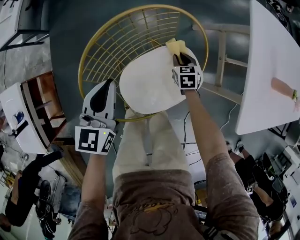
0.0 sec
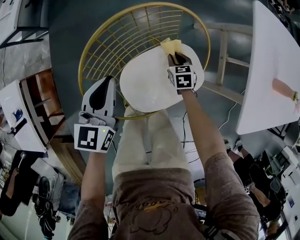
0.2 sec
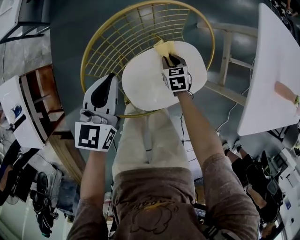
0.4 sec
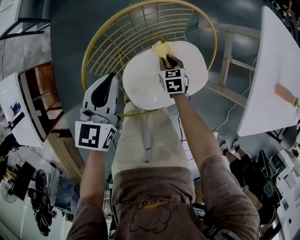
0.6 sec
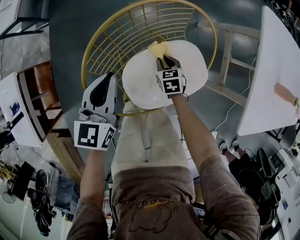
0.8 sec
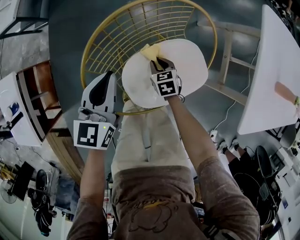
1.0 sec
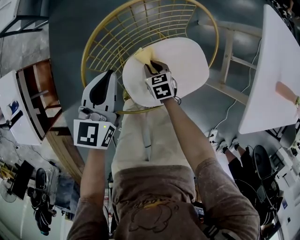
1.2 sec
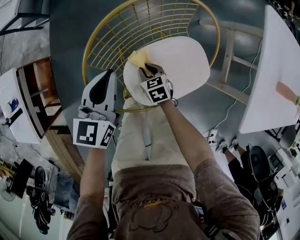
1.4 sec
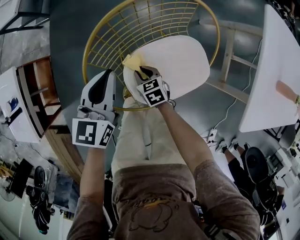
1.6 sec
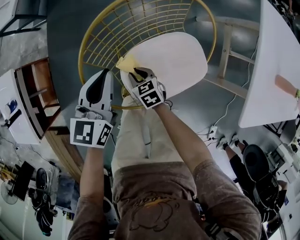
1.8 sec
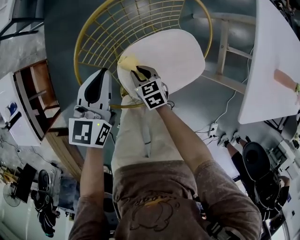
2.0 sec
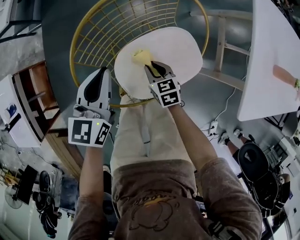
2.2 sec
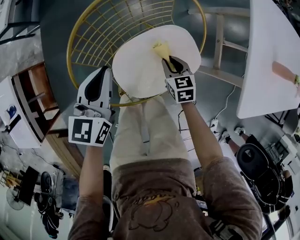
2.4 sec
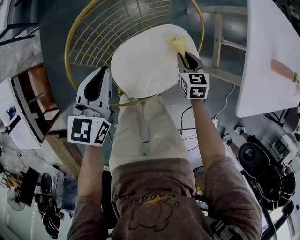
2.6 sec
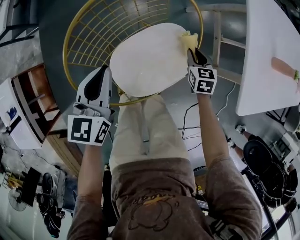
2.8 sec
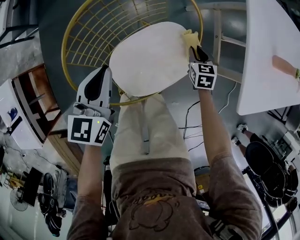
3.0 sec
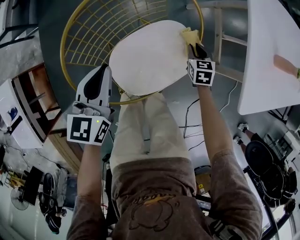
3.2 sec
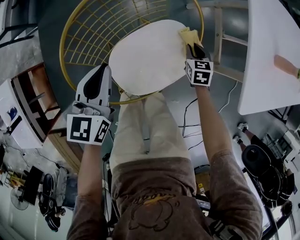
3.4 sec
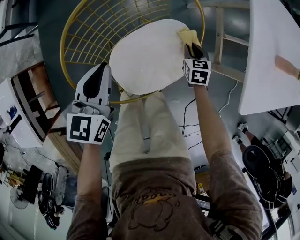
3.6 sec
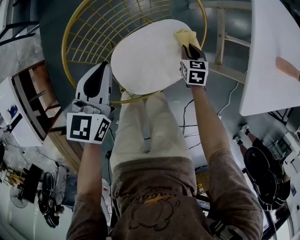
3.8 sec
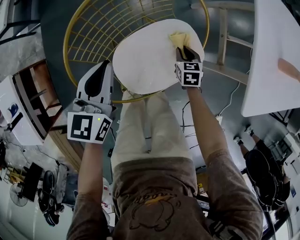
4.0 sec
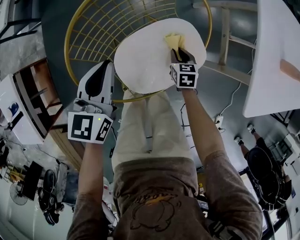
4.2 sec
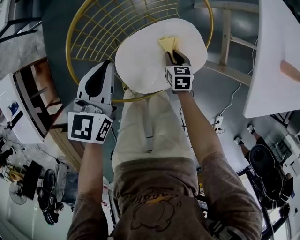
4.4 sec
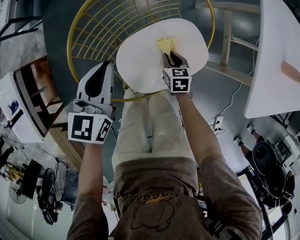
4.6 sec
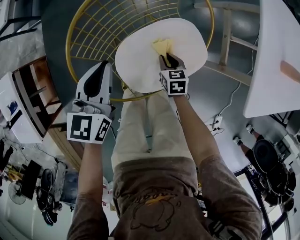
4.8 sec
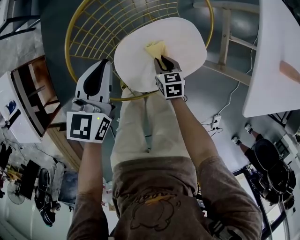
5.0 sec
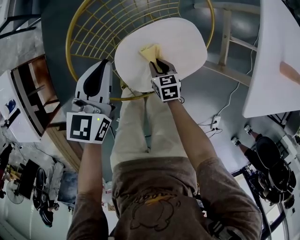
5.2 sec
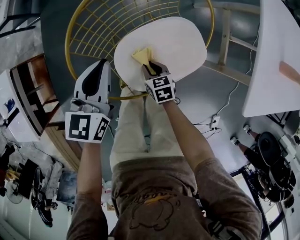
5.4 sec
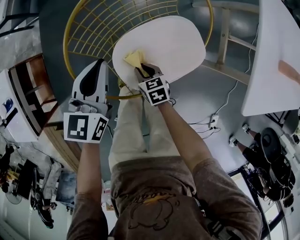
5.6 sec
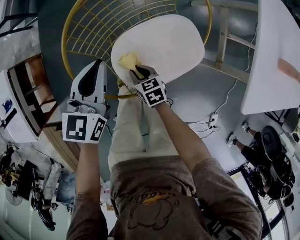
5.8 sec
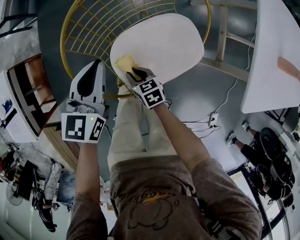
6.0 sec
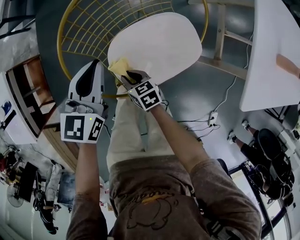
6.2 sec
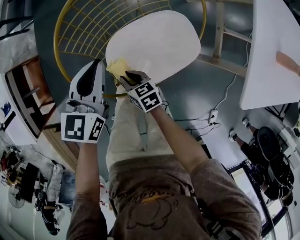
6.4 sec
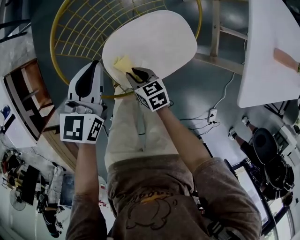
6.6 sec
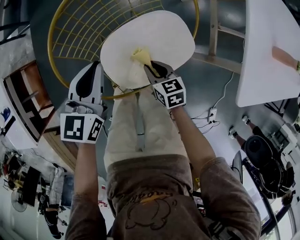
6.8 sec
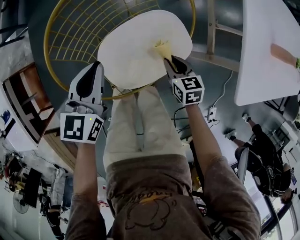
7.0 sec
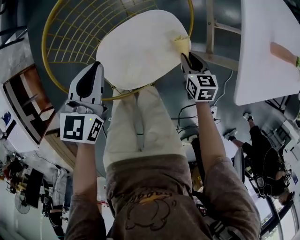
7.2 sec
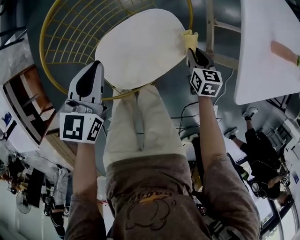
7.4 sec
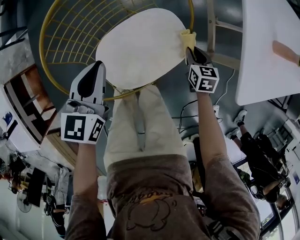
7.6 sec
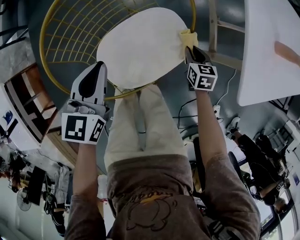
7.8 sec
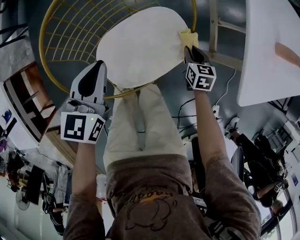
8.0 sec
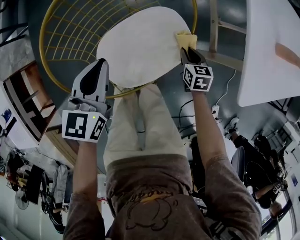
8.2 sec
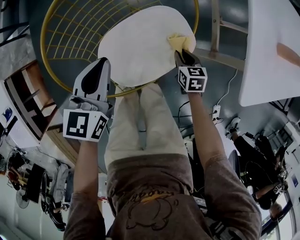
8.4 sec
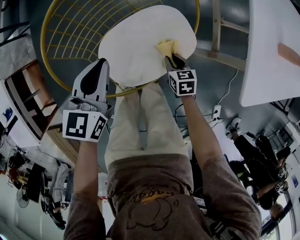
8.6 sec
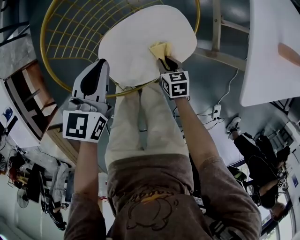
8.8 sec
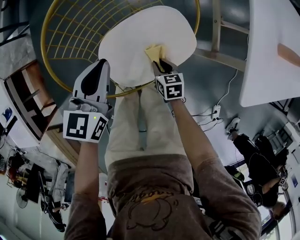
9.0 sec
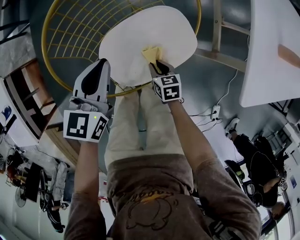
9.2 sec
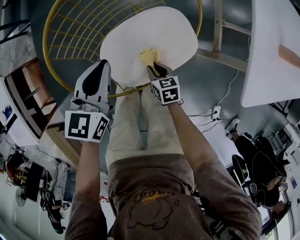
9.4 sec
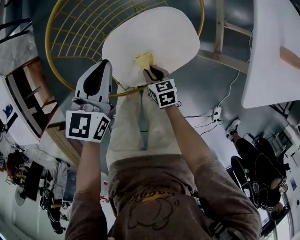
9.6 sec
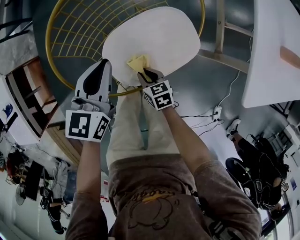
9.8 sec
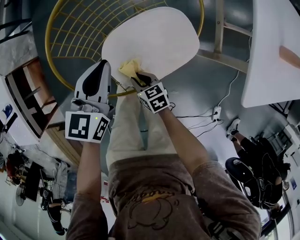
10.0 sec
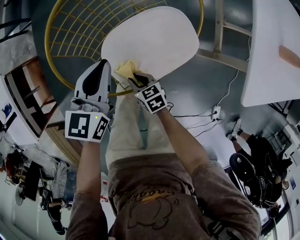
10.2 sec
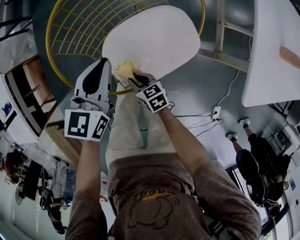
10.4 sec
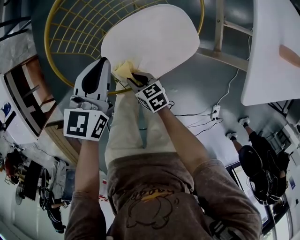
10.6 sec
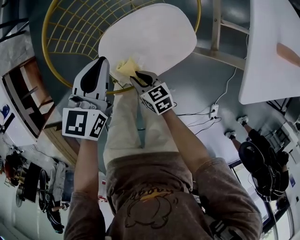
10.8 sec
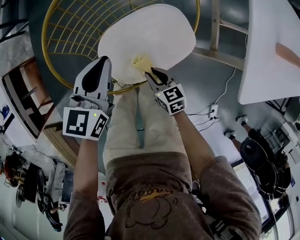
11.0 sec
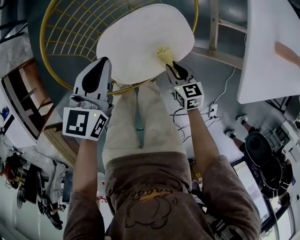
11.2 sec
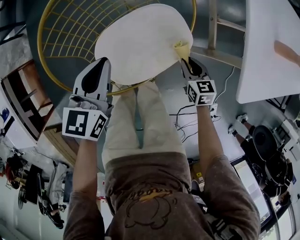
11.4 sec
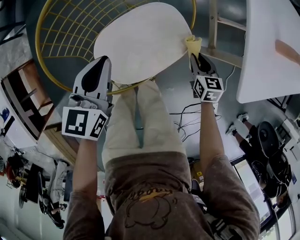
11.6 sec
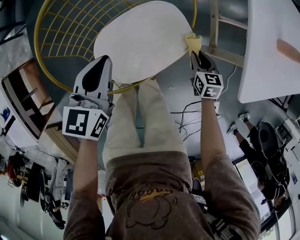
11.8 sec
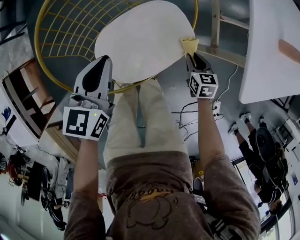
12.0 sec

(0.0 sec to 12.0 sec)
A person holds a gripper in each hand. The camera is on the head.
0.0 sec - 1.6 sec: The right gripper travels to the left and backward by approximately 25 cm, and rotates approximately 30 degrees.
1.6 sec - 3.0 sec: The left gripper changes place by approximately 5 cm, while the right gripper changes place by about 30 cm, and turns by about 30 degrees.
3.0 sec - 4.4 sec: The right gripper heads to the left, backward and downward, covering approximately 15 cm.
4.4 sec - 6.0 sec: The right gripper goes roughly 20 cm to the left and backward, and changes its angle by about 30 degrees.
6.0 sec - 7.6 sec: The right gripper changes place by some 35 cm, and rotates about 30 degrees, while the left gripper ends up roughly 5 cm from where it was.
7.6 sec - 9.0 sec: The right gripper goes roughly 20 cm to the left, backward and downward.
9.0 sec - 10.4 sec: The right gripper is displaced to the left by some 15 cm, and rotates about 20 degrees.
10.4 sec - 12.0 sec: The right gripper ends up about 30 cm from where it was, and changes its angle by roughly 30 degrees.

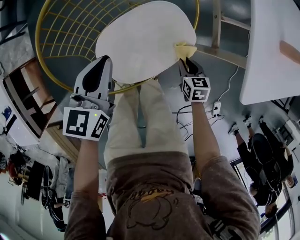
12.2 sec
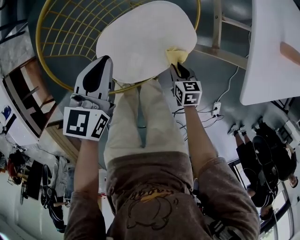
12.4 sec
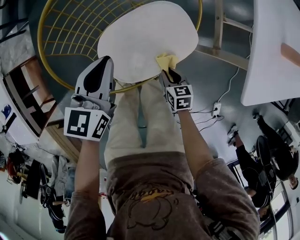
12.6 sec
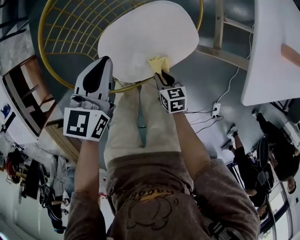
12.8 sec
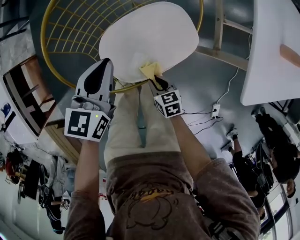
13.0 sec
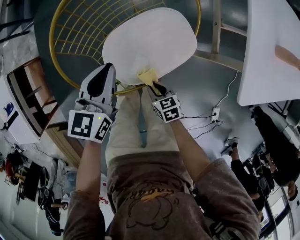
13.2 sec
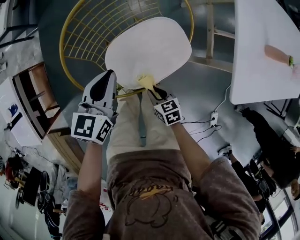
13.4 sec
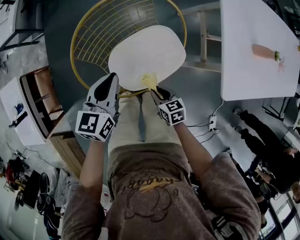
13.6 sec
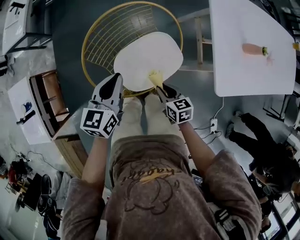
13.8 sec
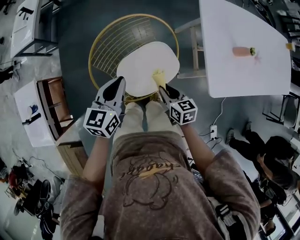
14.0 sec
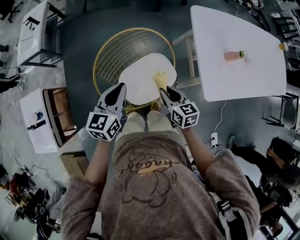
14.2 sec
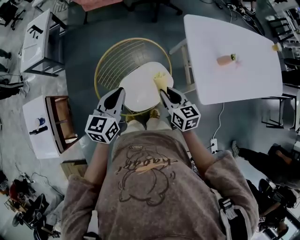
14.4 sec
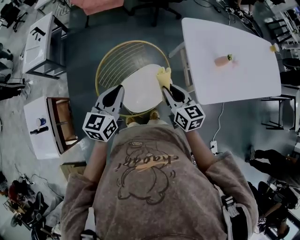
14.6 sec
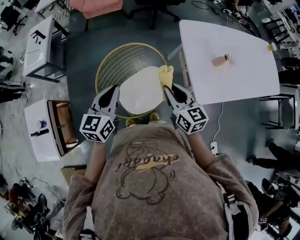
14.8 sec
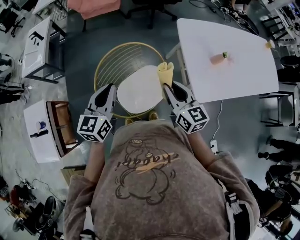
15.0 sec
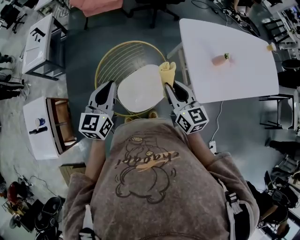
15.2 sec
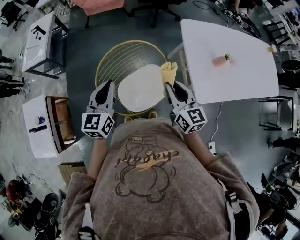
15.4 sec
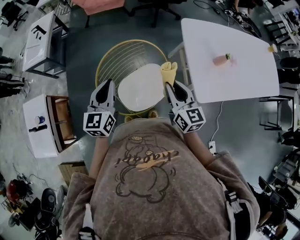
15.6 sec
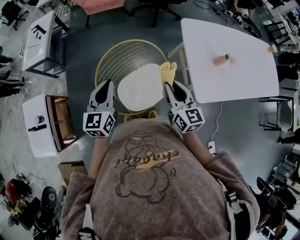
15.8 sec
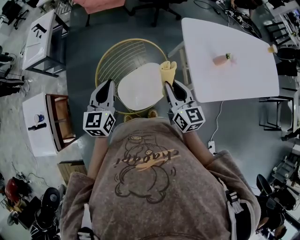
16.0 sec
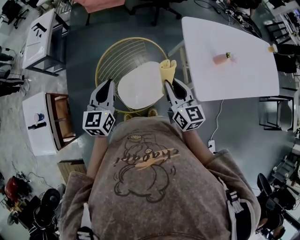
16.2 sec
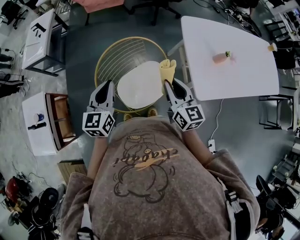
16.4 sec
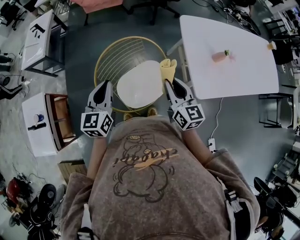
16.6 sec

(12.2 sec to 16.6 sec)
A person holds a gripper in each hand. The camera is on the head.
12.2 sec - 13.6 sec: The left gripper moves upward, approximately 10 cm. Meanwhile the right gripper is displaced to the left and upward by some 20 cm.
13.6 sec - 15.2 sec: The left gripper moves upward, some 25 cm. The right gripper is displaced upward by roughly 40 cm, and points its fingers roughly 40 degrees further upward.
15.2 sec - 16.6 sec: The grippers move only a little.

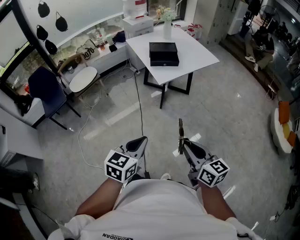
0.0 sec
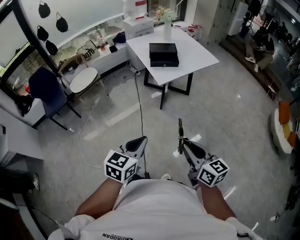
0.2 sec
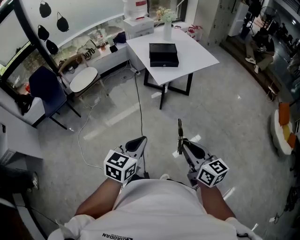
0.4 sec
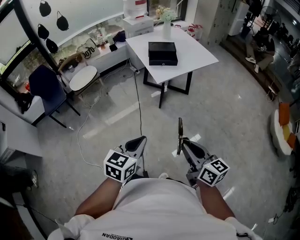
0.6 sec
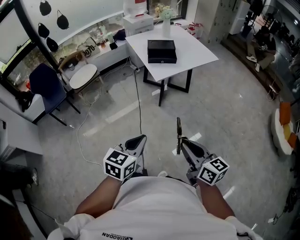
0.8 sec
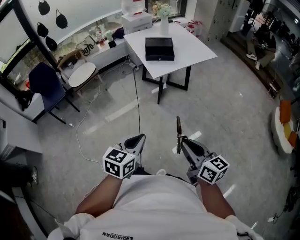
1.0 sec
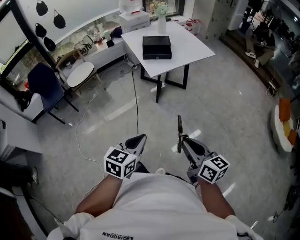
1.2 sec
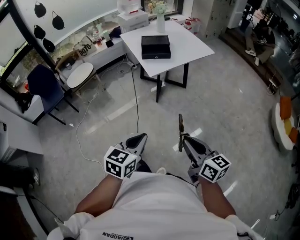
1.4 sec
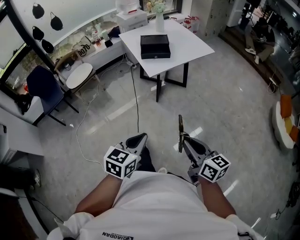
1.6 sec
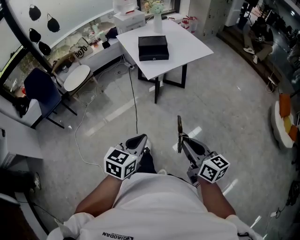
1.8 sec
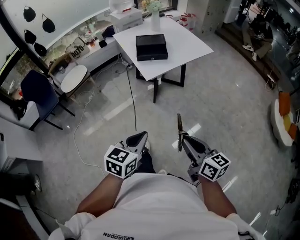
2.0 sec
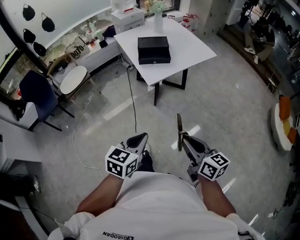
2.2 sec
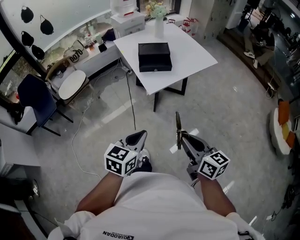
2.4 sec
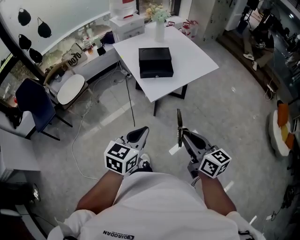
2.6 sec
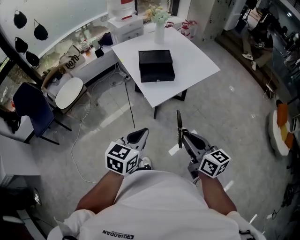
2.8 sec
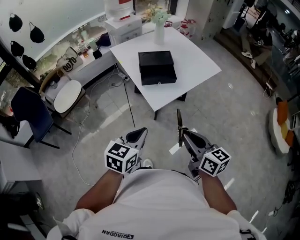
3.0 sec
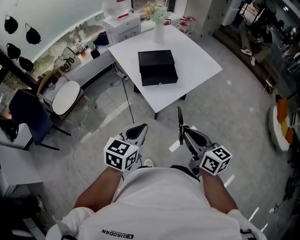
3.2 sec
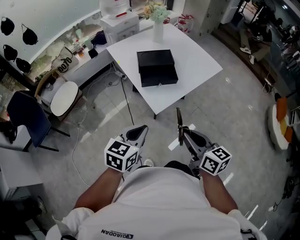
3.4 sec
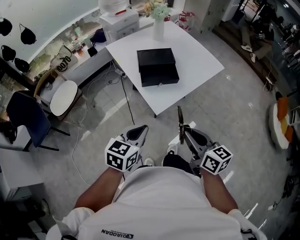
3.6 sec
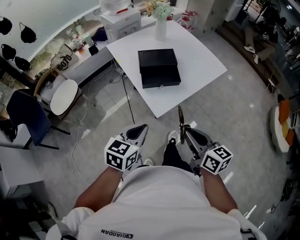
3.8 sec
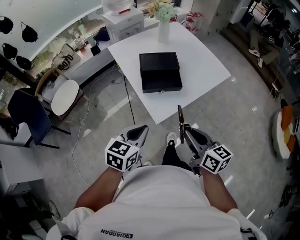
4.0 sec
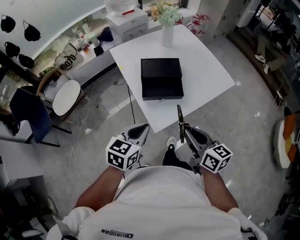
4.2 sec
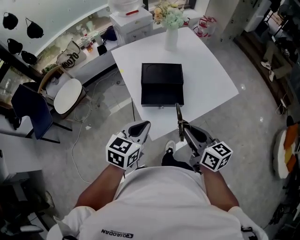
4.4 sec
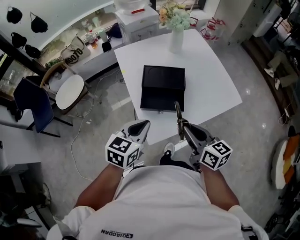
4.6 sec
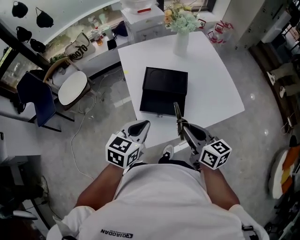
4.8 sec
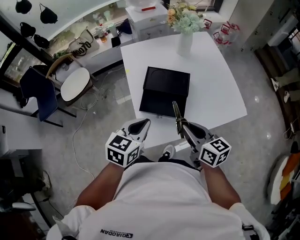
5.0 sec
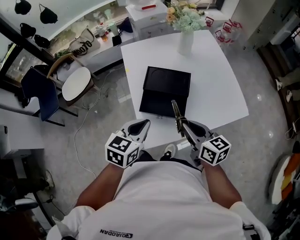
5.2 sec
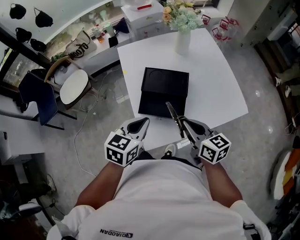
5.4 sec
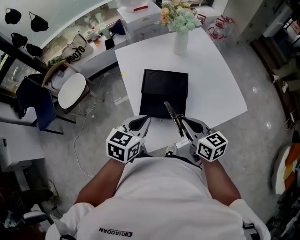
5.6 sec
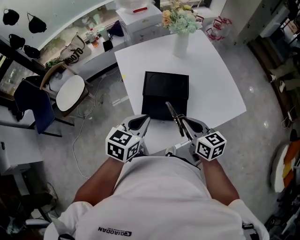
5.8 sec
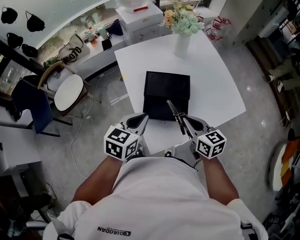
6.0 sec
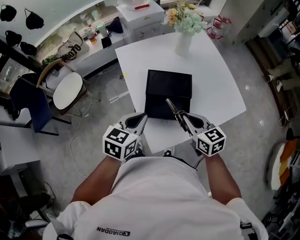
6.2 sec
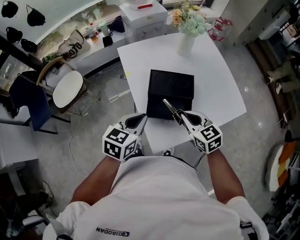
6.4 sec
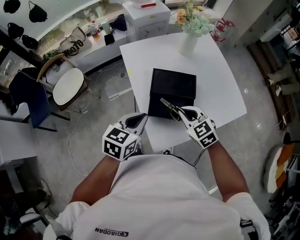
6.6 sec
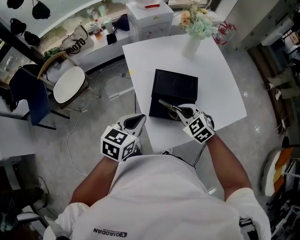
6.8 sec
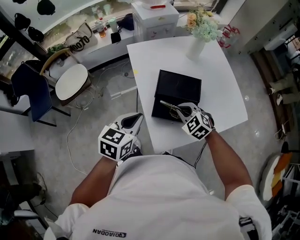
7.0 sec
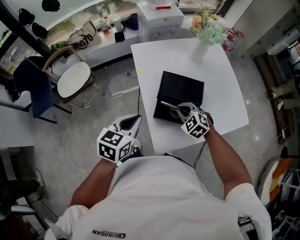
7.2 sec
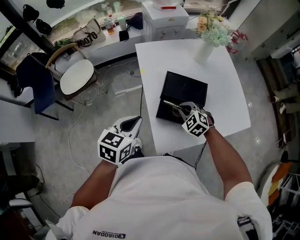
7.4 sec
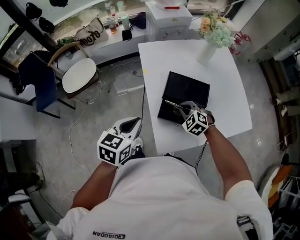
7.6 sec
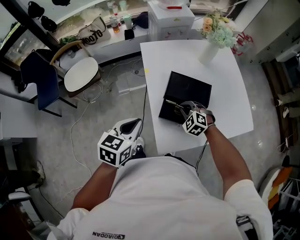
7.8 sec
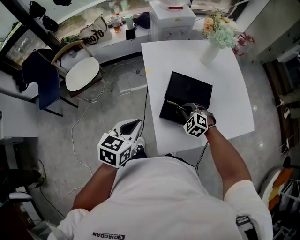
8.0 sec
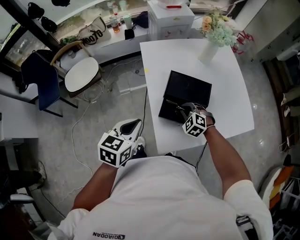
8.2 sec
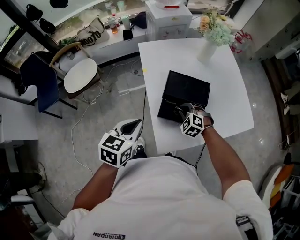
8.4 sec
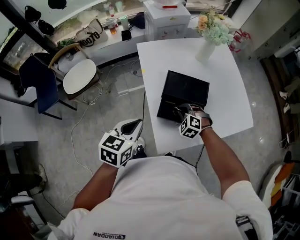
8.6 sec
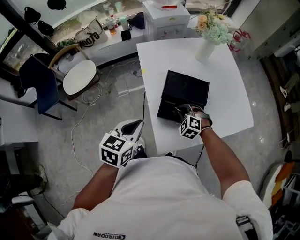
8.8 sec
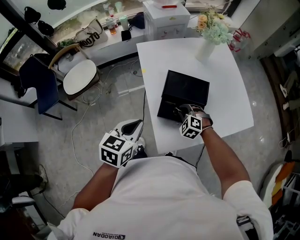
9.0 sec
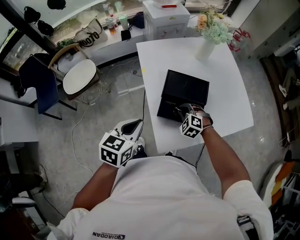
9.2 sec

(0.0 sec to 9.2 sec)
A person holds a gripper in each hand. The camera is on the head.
0.0 sec - 1.6 sec: Both grippers move to the right, some 10 cm.
1.6 sec - 3.0 sec: The two grippers go some 30 cm forward.
3.0 sec - 4.6 sec: Both grippers move forward, roughly 30 cm.
4.6 sec - 6.2 sec: The grippers both shift forward by approximately 10 cm.
6.2 sec - 7.6 sec: The left gripper goes some 10 cm to the left; the right gripper moves downward, to the left and forward, about 15 cm, and twists roughly 60 degrees counterclockwise, seen from behind.
7.6 sec - 9.2 sec: The grippers move only a little.
